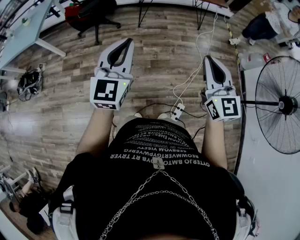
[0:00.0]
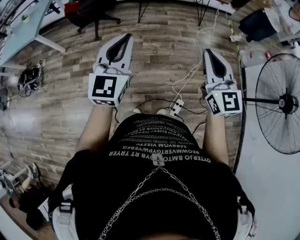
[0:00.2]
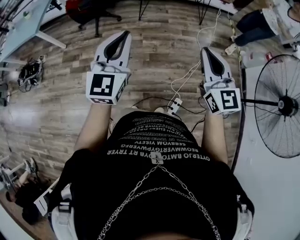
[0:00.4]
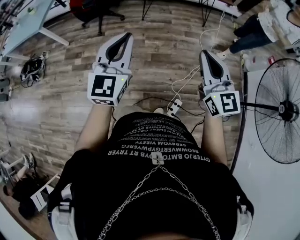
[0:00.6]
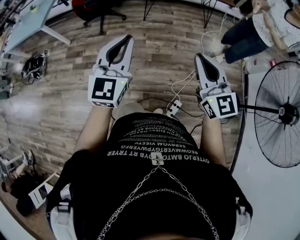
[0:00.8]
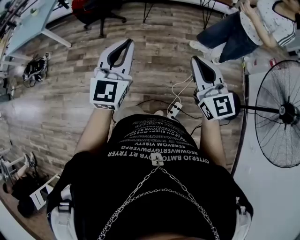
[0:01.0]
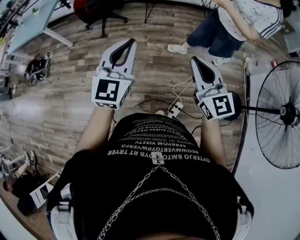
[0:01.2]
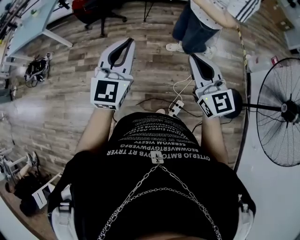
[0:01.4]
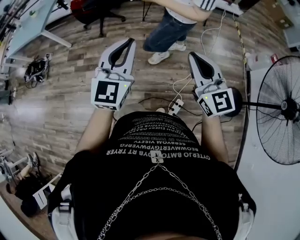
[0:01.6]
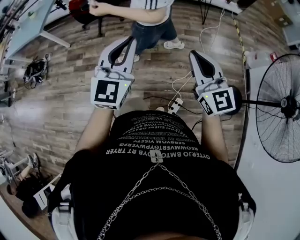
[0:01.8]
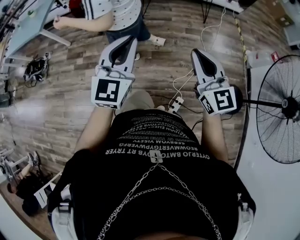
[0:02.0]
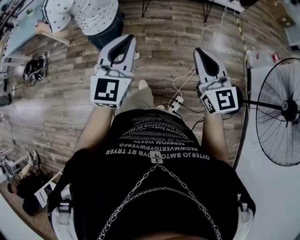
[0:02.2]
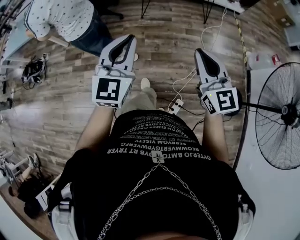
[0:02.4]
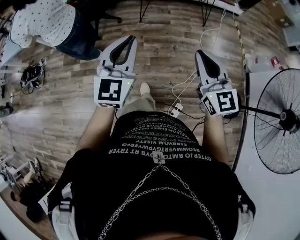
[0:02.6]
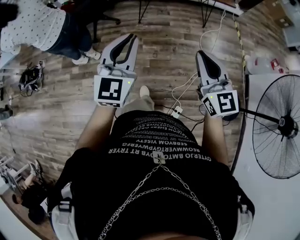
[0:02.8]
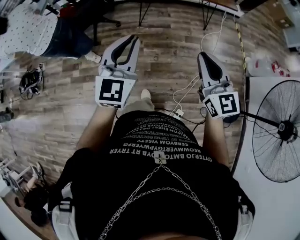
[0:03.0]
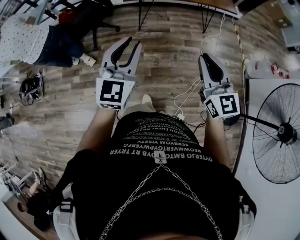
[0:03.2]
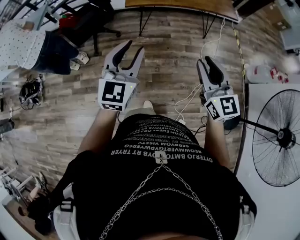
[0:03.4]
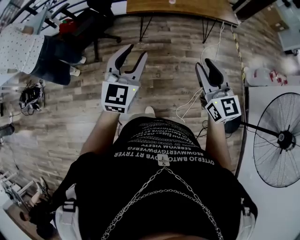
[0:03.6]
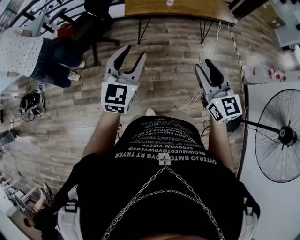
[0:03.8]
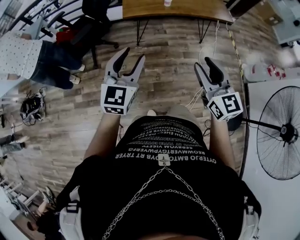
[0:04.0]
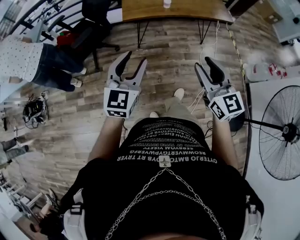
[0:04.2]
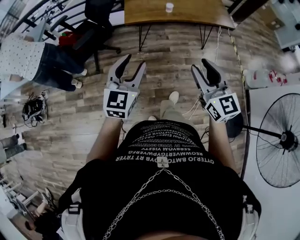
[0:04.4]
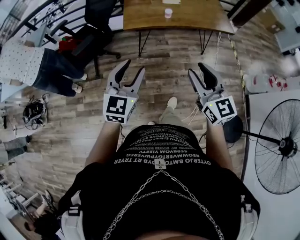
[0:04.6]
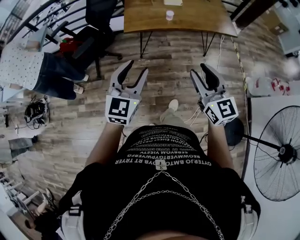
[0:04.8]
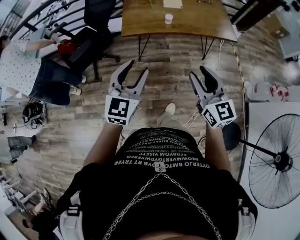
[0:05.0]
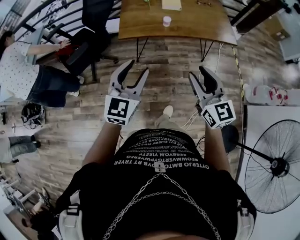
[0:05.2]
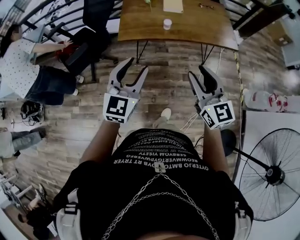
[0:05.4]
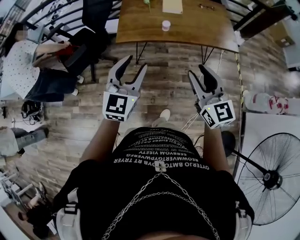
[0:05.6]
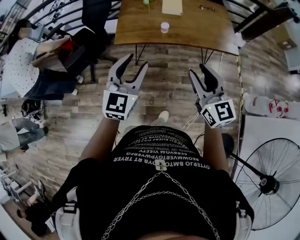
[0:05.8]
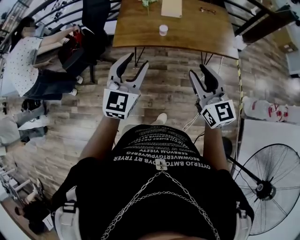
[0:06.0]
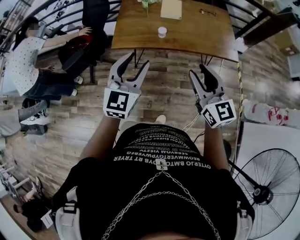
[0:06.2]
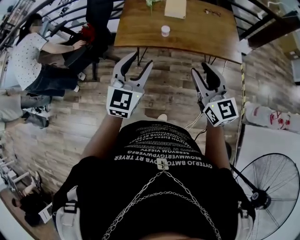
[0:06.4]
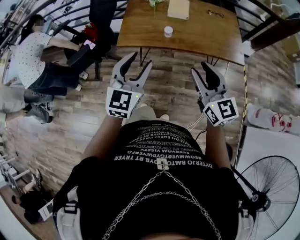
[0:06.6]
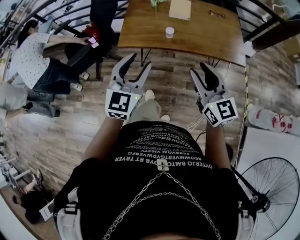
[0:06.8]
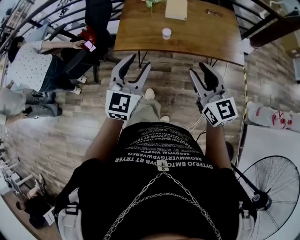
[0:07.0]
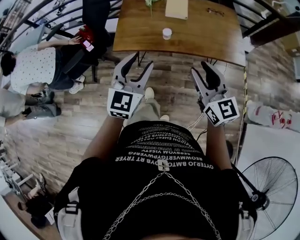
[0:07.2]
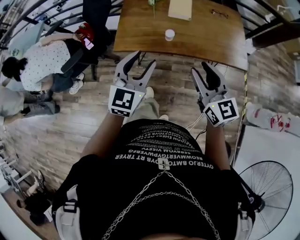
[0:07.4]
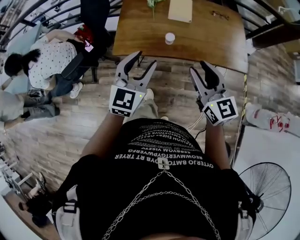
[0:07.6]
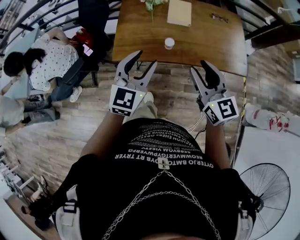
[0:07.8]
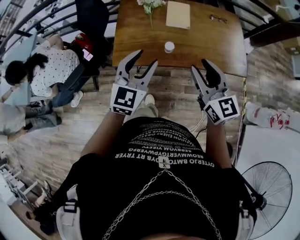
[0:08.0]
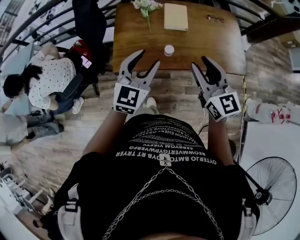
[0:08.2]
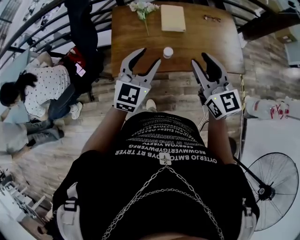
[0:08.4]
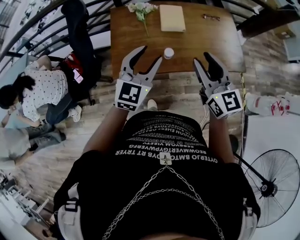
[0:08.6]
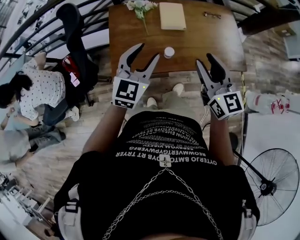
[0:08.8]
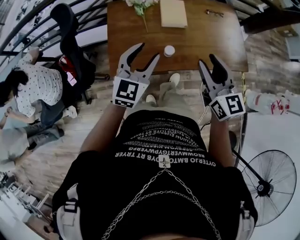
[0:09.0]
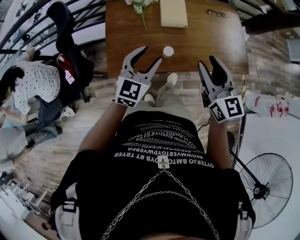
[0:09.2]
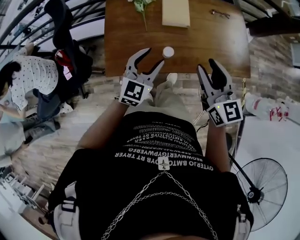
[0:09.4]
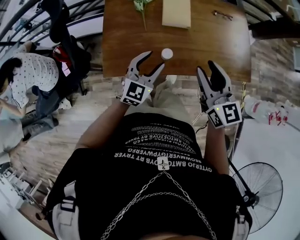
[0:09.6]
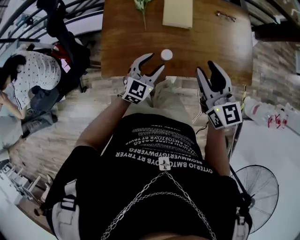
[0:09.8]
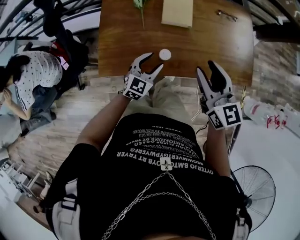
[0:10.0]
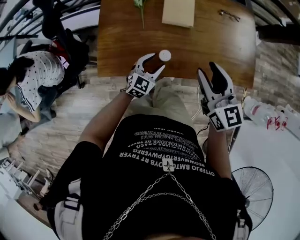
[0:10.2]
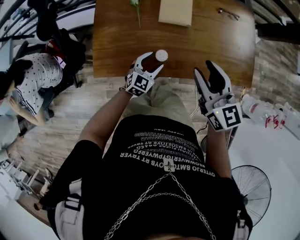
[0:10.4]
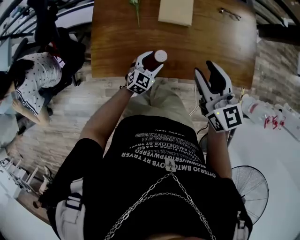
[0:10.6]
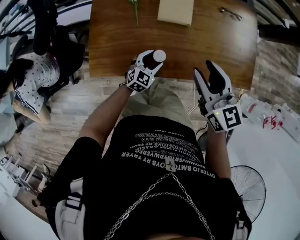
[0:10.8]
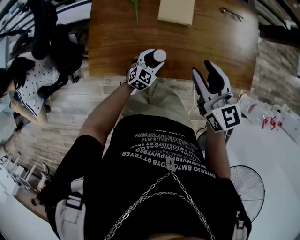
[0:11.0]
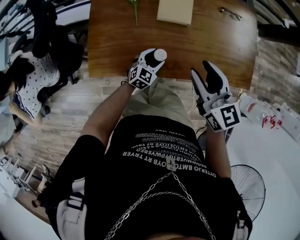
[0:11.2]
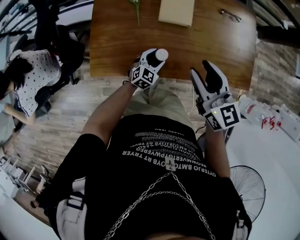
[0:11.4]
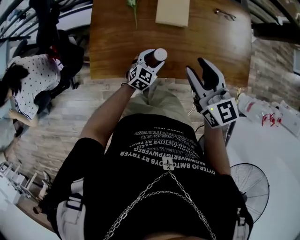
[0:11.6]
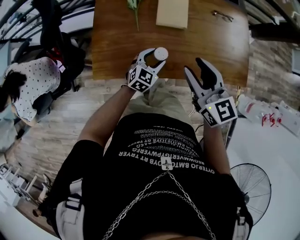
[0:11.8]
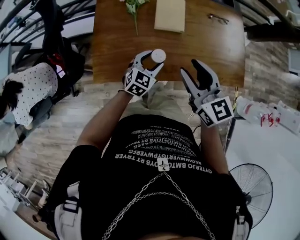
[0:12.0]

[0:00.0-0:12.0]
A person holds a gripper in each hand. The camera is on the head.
0:00.0 to 0:01.6: The right gripper shifts by about 5 cm; the left gripper moves to the right, about 10 cm.
0:01.6 to 0:03.0: Both grippers travel together forward, approximately 20 cm.
0:03.0 to 0:04.4: Both grippers move forward and to the left, some 15 cm. The right gripper opens up, while the left gripper opens.
0:04.4 to 0:06.0: The two grippers go about 30 cm forward and to the right.
0:06.0 to 0:07.6: The grippers both shift forward by some 15 cm.
0:07.6 to 0:09.0: Both grippers move forward, approximately 15 cm.
0:09.0 to 0:10.4: The right gripper travels downward and forward by roughly 10 cm, while the left gripper travels downward by approximately 30 cm.
0:10.4 to 0:12.0: The left gripper travels upward by roughly 5 cm.

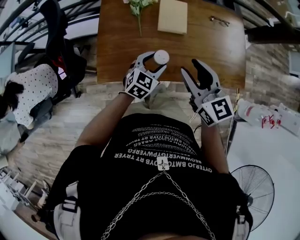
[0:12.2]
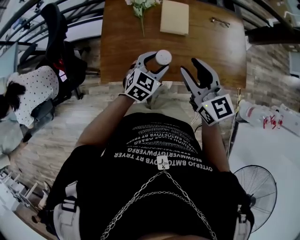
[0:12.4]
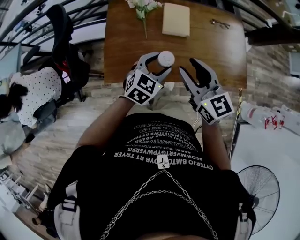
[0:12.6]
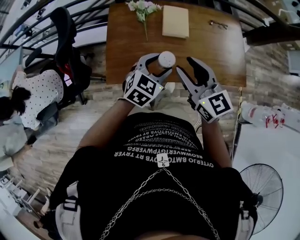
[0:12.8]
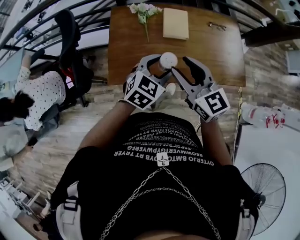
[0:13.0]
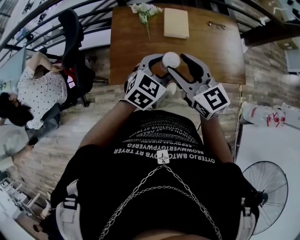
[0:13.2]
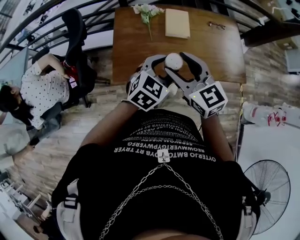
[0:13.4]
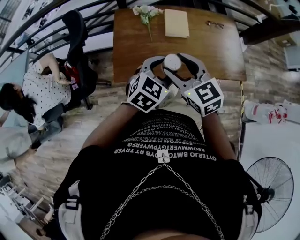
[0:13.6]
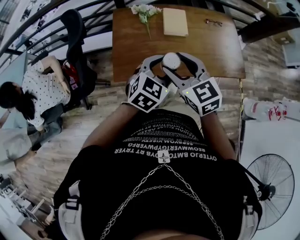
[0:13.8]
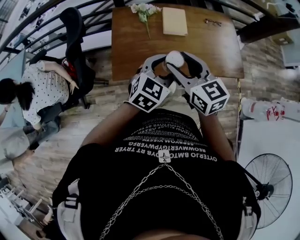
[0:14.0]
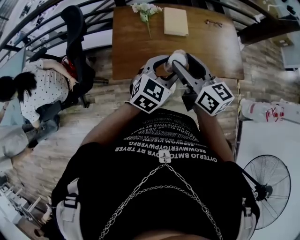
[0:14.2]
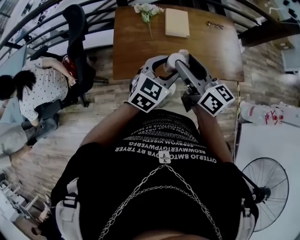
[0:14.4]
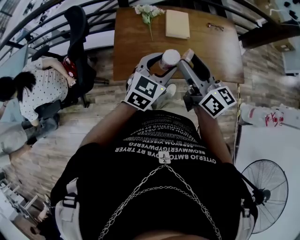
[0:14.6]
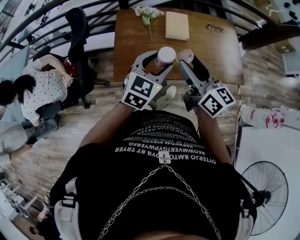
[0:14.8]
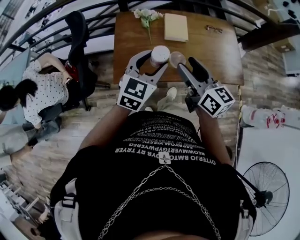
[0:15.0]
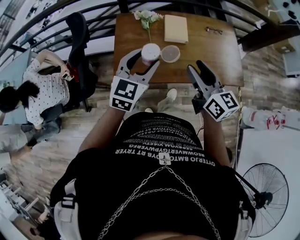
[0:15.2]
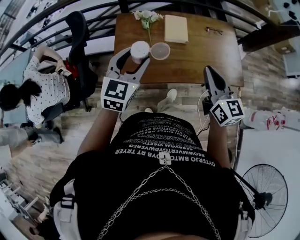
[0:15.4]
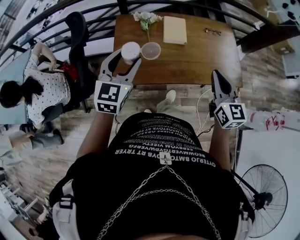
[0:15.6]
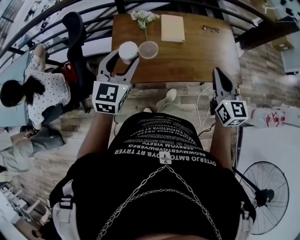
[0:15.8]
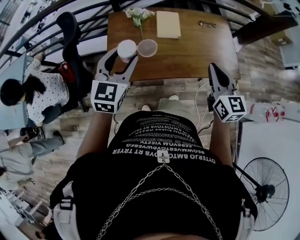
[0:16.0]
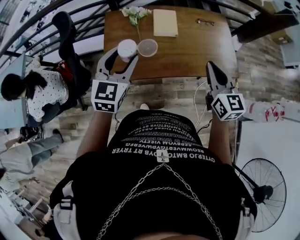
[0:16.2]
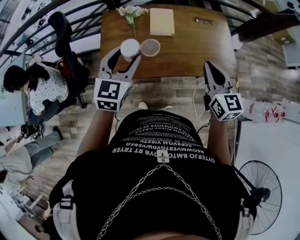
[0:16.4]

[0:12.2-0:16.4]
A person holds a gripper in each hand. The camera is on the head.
0:12.2 to 0:13.6: The right gripper is displaced to the left, backward and upward by roughly 15 cm. The left gripper goes roughly 20 cm upward and backward.
0:13.6 to 0:15.0: The left gripper ends up about 5 cm from where it was. Meanwhile the right gripper shifts some 5 cm to the right, and swivels about 30 degrees.
0:15.0 to 0:16.4: The left gripper moves some 10 cm to the left and comes back. Meanwhile the right gripper goes some 15 cm to the right, rotates approximately 20 degrees, and closes.

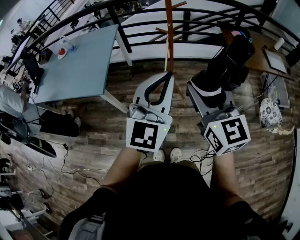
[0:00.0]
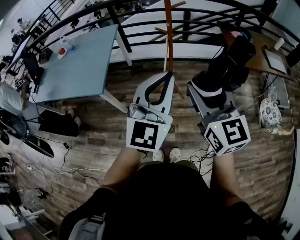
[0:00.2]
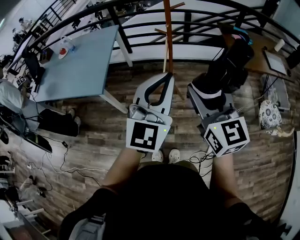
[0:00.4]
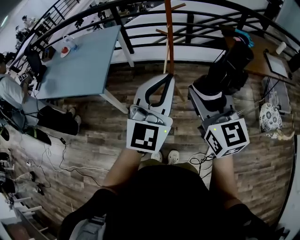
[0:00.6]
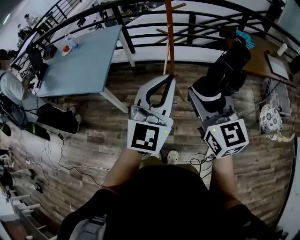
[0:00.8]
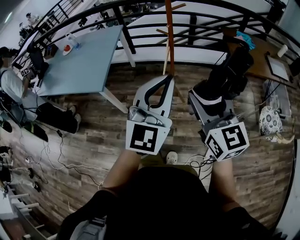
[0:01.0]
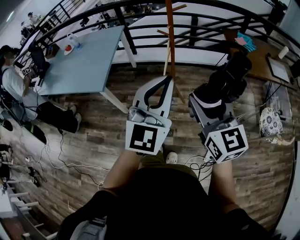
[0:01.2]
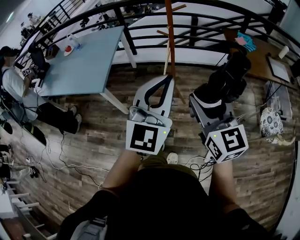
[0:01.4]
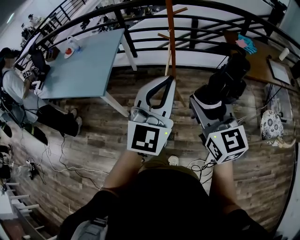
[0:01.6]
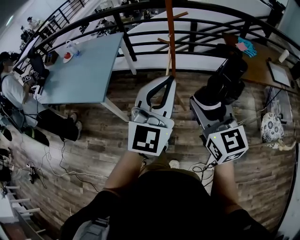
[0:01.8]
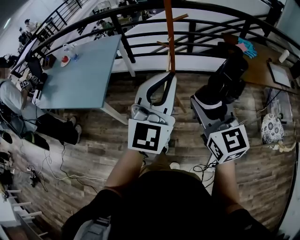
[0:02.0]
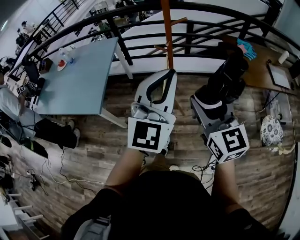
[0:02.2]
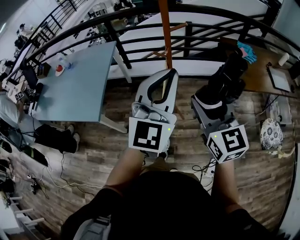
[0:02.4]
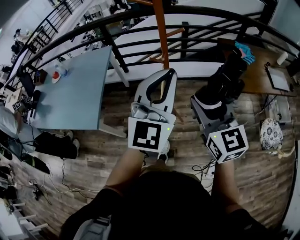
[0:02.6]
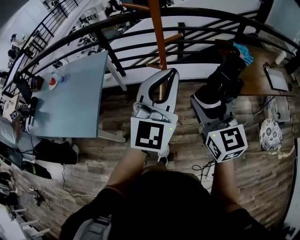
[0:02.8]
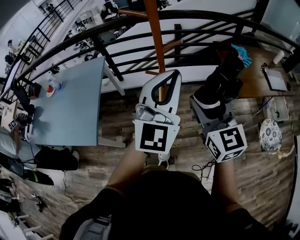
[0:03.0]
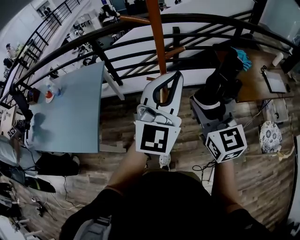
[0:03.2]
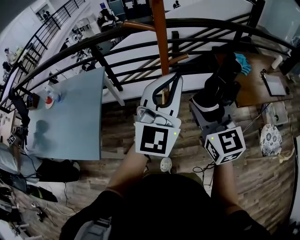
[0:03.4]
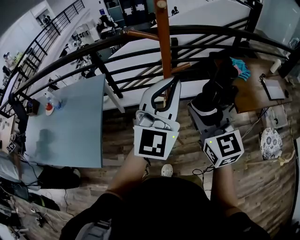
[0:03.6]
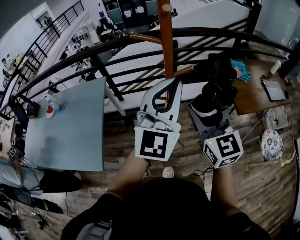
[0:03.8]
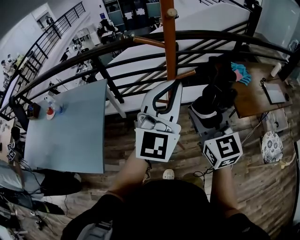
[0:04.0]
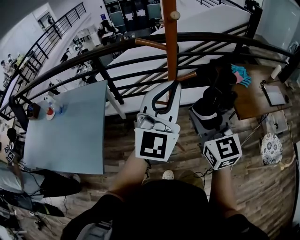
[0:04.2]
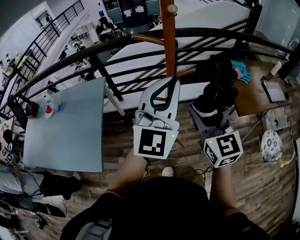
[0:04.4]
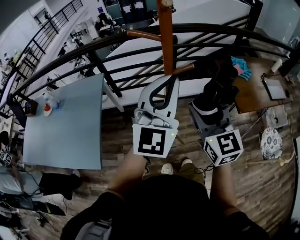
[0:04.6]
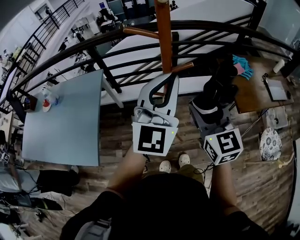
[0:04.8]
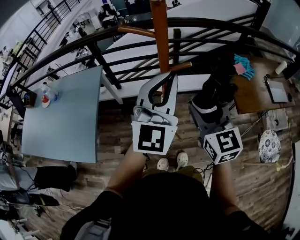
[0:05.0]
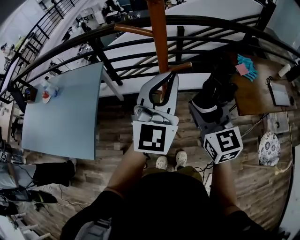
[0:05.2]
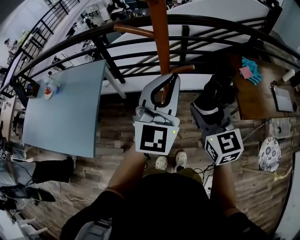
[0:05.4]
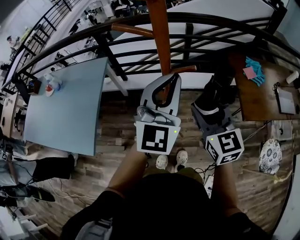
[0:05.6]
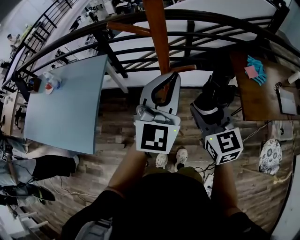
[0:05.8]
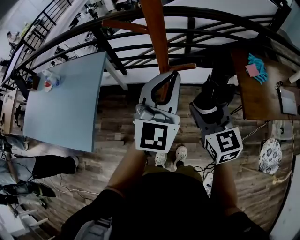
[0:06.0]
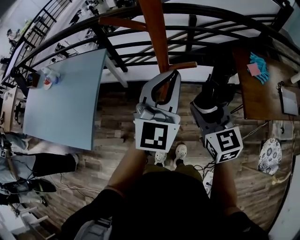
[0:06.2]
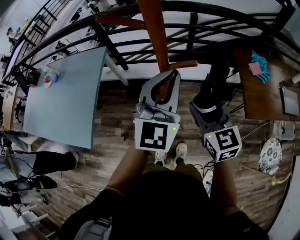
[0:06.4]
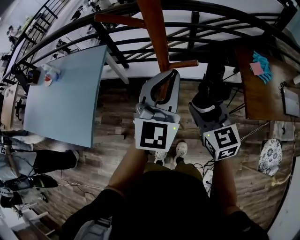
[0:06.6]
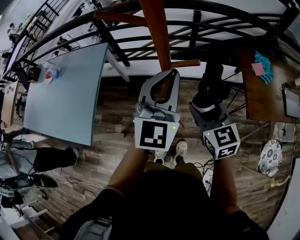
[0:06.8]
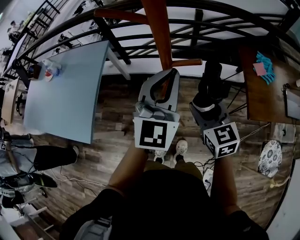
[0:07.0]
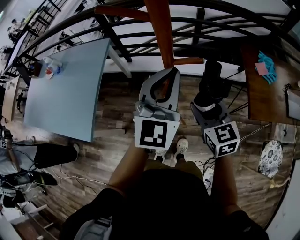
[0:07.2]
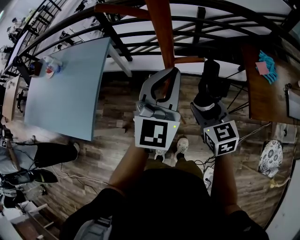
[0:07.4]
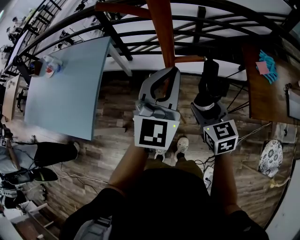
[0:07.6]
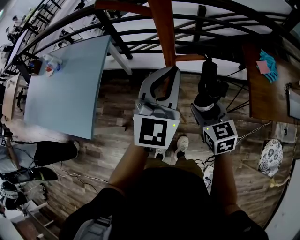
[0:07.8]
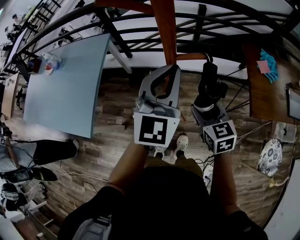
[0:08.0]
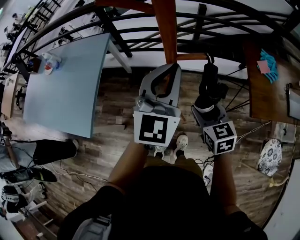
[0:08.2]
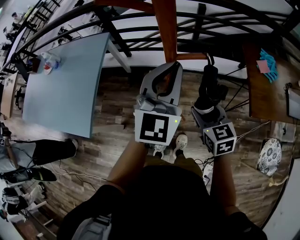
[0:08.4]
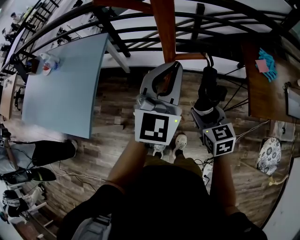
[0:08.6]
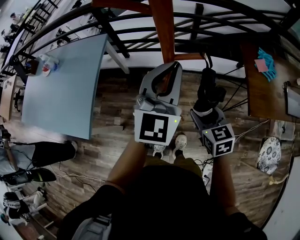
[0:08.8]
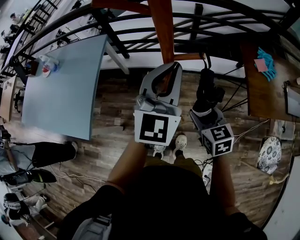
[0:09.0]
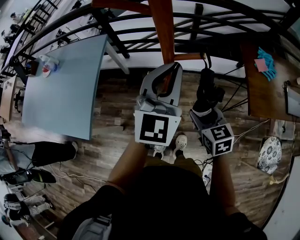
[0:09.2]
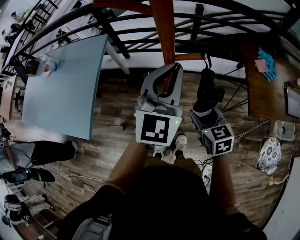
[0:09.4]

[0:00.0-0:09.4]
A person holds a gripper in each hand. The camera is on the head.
0:00.0 to 0:01.6: The right gripper changes place by some 5 cm.
0:01.6 to 0:03.2: The grippers both shift forward by about 30 cm.
0:03.2 to 0:04.8: The grippers both shift forward by approximately 5 cm.
0:04.8 to 0:06.2: The left gripper shifts roughly 10 cm forward and downward, while the right gripper travels downward and forward by approximately 10 cm.
0:06.2 to 0:07.8: The right gripper heads downward, covering approximately 10 cm.
0:07.8 to 0:09.4: The grippers stay close to where they were, moving slightly.
